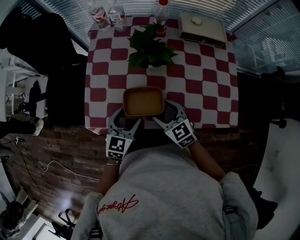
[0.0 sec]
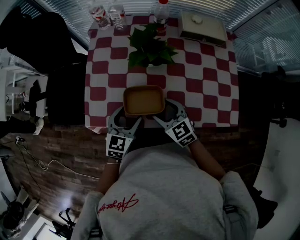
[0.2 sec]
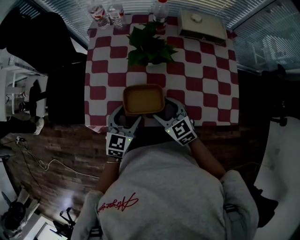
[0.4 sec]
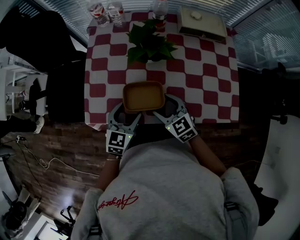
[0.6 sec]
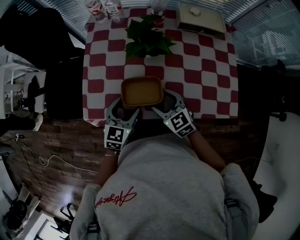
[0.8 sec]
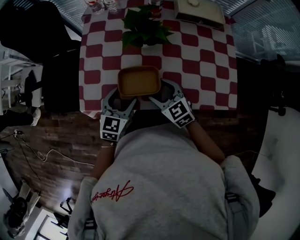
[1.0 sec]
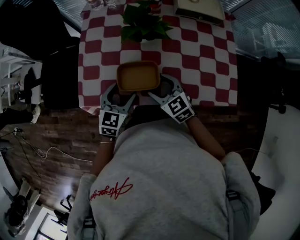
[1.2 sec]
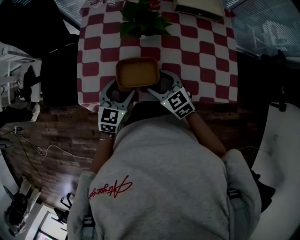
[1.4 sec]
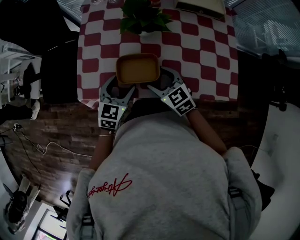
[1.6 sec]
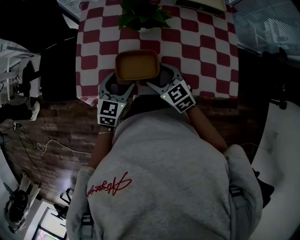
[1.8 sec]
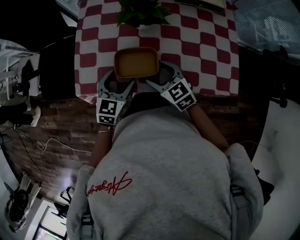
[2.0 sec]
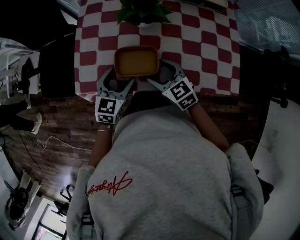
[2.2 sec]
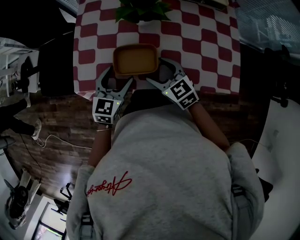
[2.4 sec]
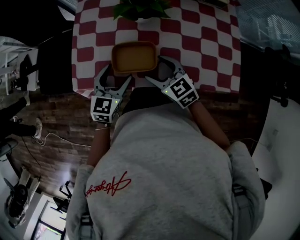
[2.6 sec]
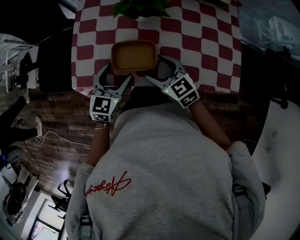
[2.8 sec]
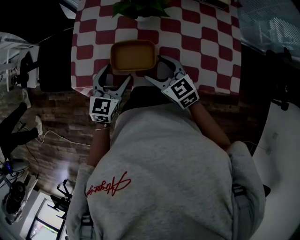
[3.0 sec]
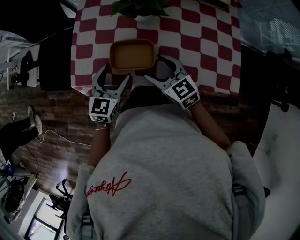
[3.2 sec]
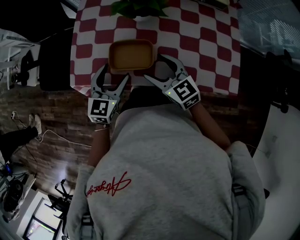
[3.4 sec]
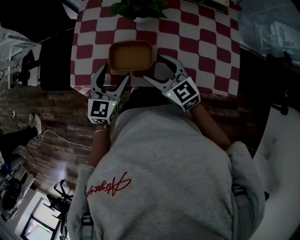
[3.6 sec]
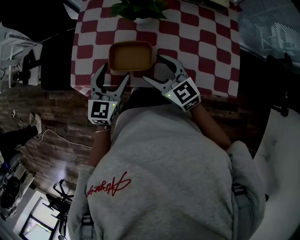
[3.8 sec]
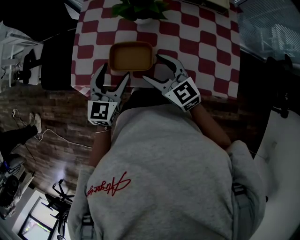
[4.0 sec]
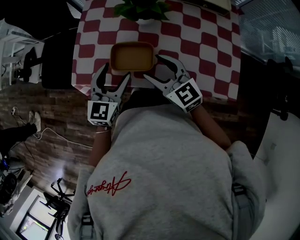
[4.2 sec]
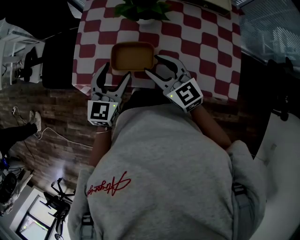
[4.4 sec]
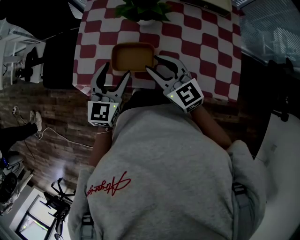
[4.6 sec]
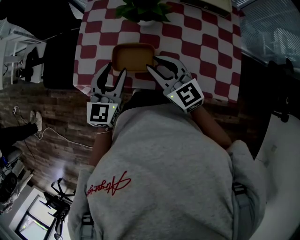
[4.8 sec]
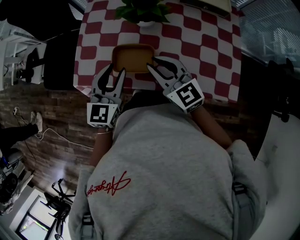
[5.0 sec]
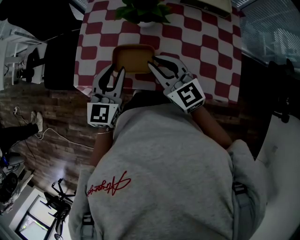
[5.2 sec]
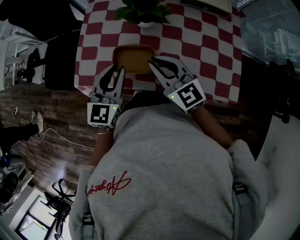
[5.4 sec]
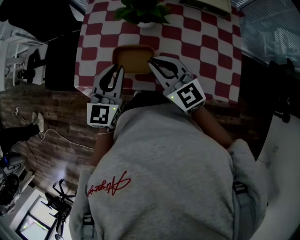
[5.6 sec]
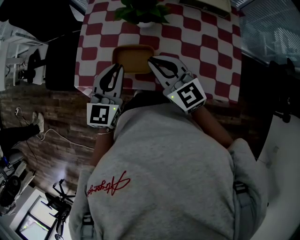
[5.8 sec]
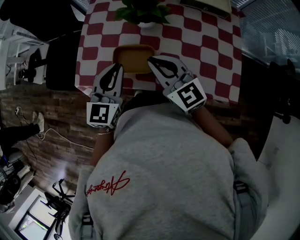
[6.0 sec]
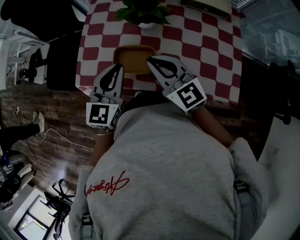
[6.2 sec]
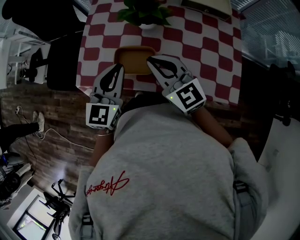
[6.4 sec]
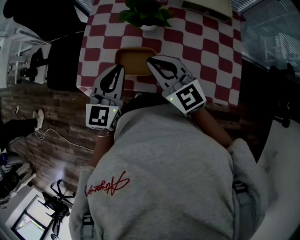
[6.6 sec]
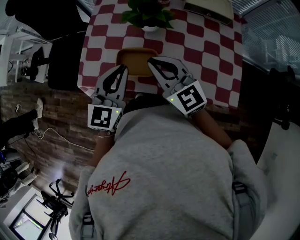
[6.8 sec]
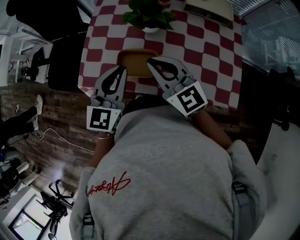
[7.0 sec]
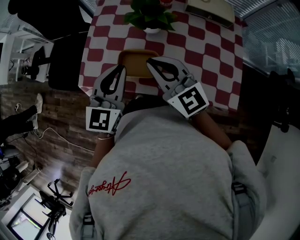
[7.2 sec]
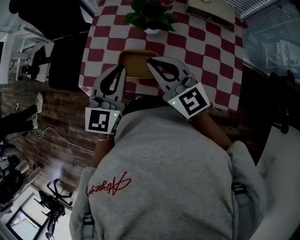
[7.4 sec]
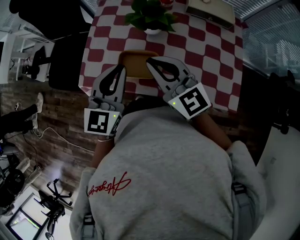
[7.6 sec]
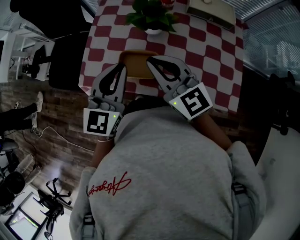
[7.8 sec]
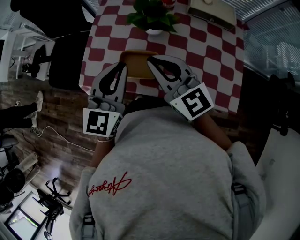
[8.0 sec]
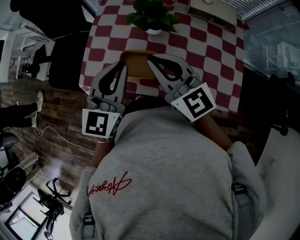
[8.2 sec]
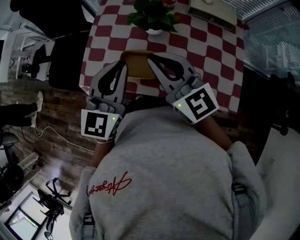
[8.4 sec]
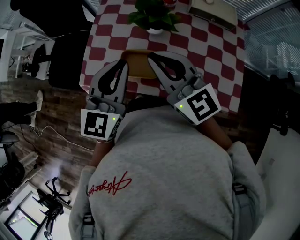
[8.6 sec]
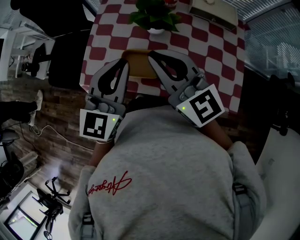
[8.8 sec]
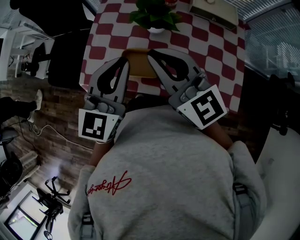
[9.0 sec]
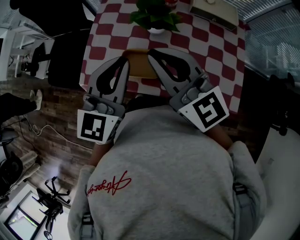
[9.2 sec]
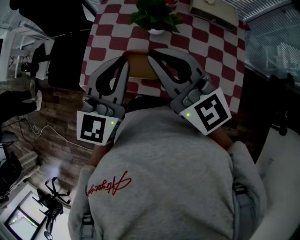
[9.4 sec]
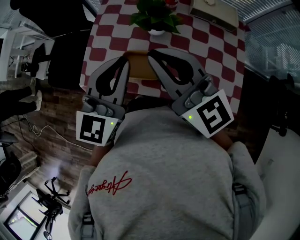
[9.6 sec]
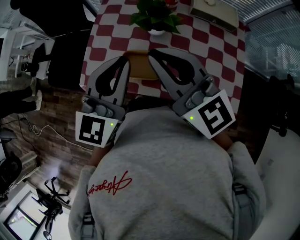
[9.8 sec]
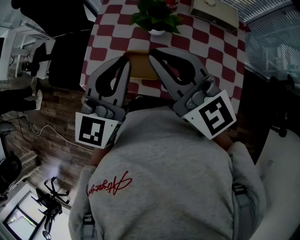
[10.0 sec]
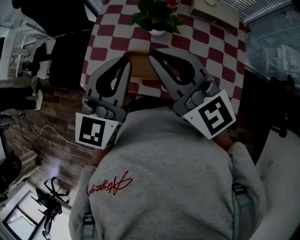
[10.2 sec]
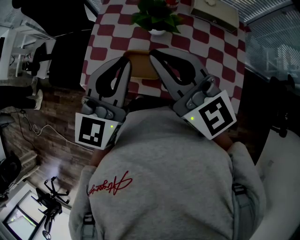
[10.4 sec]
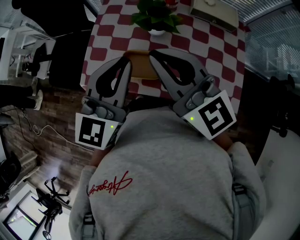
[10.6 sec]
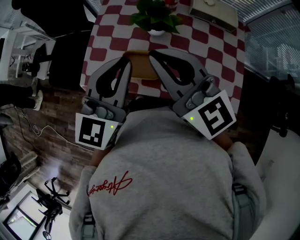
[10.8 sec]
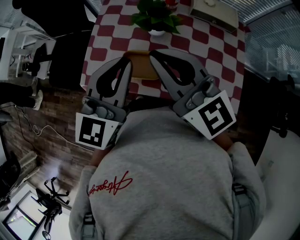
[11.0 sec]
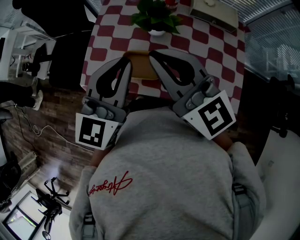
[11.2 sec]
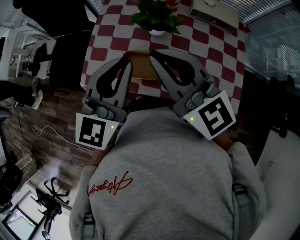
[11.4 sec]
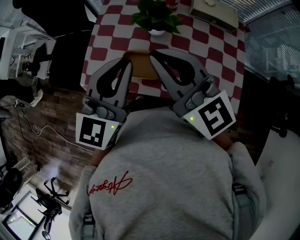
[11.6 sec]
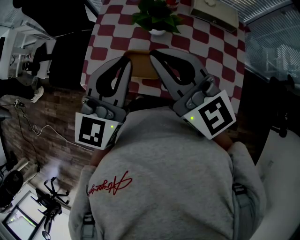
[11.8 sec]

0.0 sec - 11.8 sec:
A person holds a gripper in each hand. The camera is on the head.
0.0 sec - 1.4 sec: The two grippers keep their place.
1.4 sec - 3.0 sec: The grippers make only small movements.
3.0 sec - 4.4 sec: Both grippers travel together upward, approximately 5 cm. The right gripper closes up.
4.4 sec - 6.0 sec: The right gripper closes. The left gripper shifts by roughly 5 cm, and closes up.
6.0 sec - 7.4 sec: The left gripper is displaced upward by roughly 5 cm.
7.4 sec - 8.8 sec: The two grippers go about 5 cm upward.
8.8 sec - 10.4 sec: The grippers stay close to where they were, moving slightly.
10.4 sec - 11.8 sec: Both grippers stay about where they are.

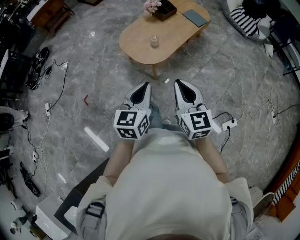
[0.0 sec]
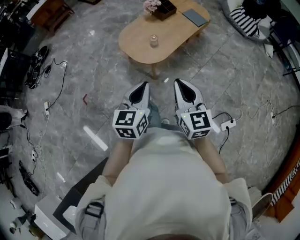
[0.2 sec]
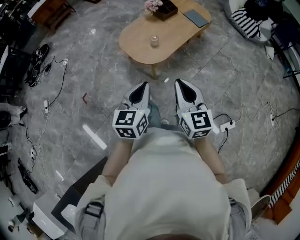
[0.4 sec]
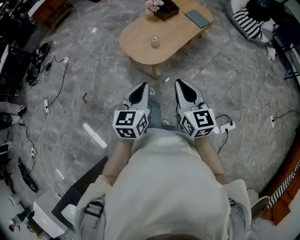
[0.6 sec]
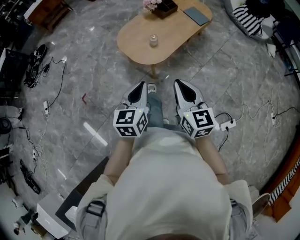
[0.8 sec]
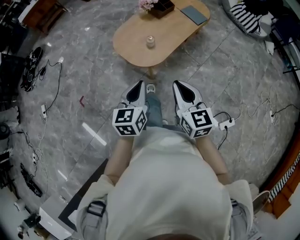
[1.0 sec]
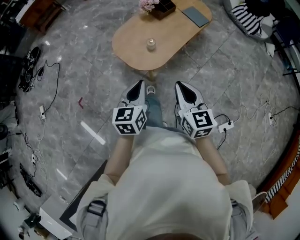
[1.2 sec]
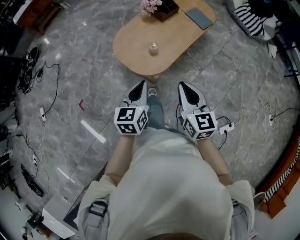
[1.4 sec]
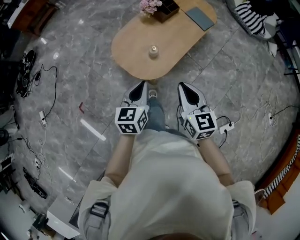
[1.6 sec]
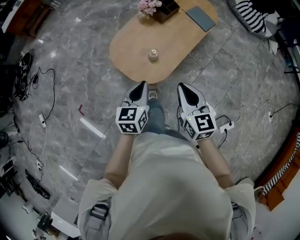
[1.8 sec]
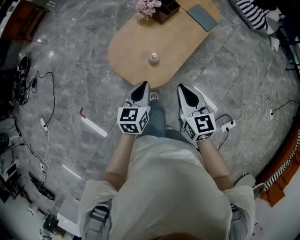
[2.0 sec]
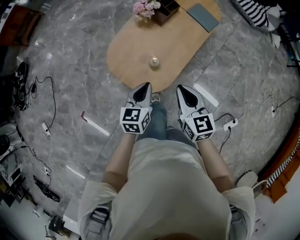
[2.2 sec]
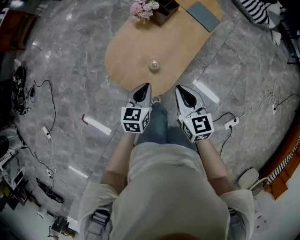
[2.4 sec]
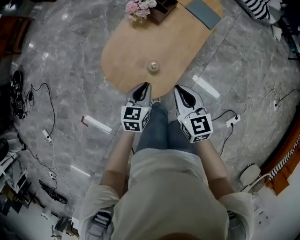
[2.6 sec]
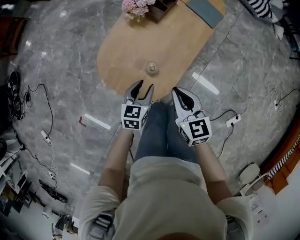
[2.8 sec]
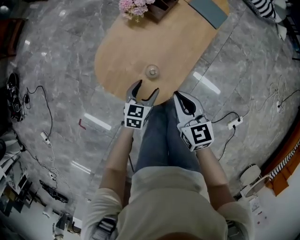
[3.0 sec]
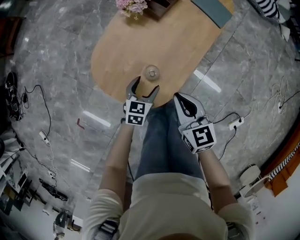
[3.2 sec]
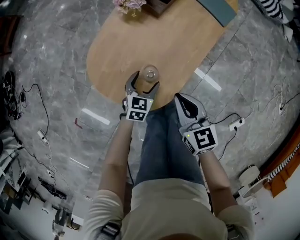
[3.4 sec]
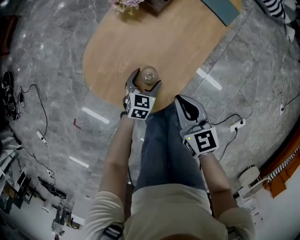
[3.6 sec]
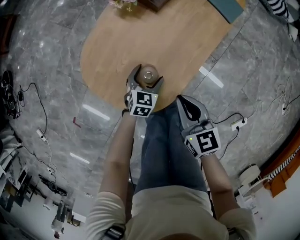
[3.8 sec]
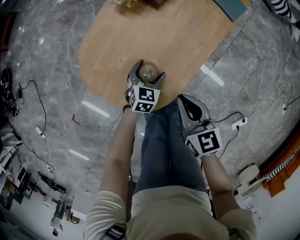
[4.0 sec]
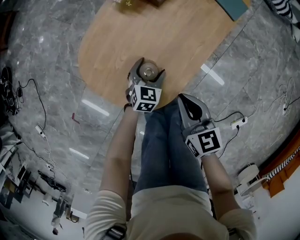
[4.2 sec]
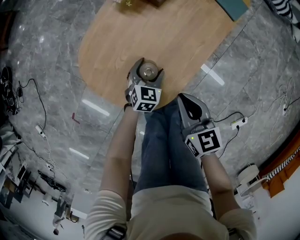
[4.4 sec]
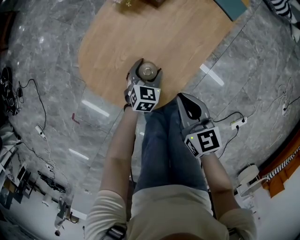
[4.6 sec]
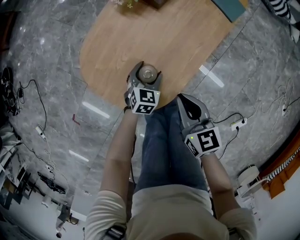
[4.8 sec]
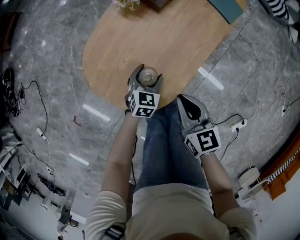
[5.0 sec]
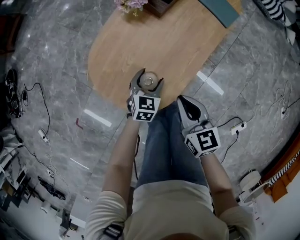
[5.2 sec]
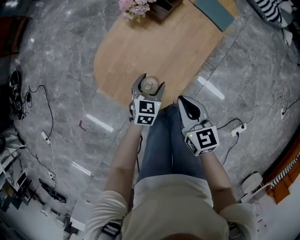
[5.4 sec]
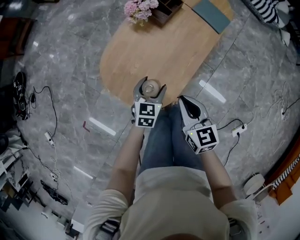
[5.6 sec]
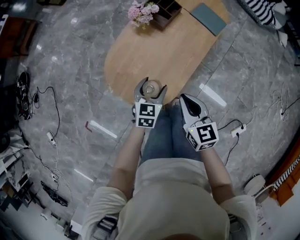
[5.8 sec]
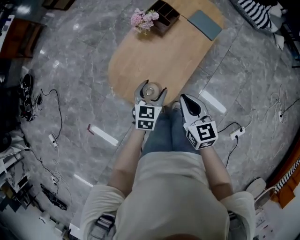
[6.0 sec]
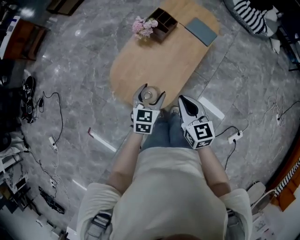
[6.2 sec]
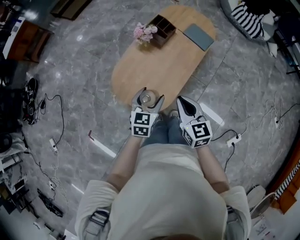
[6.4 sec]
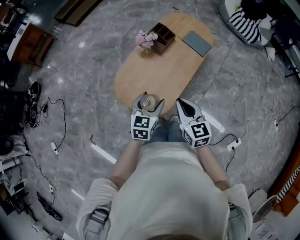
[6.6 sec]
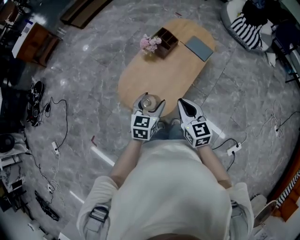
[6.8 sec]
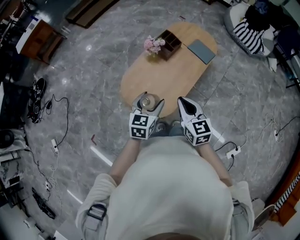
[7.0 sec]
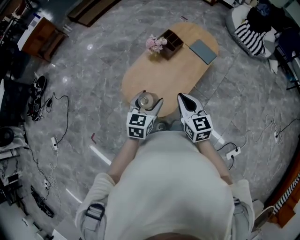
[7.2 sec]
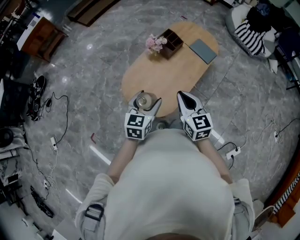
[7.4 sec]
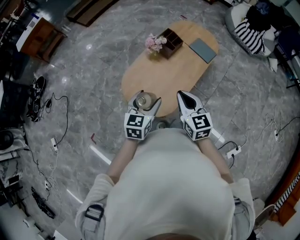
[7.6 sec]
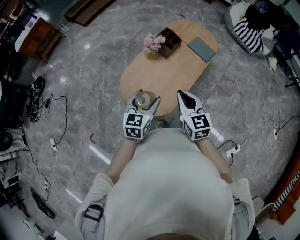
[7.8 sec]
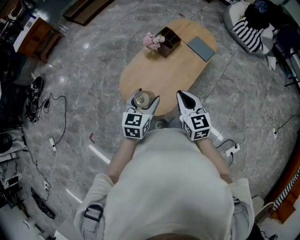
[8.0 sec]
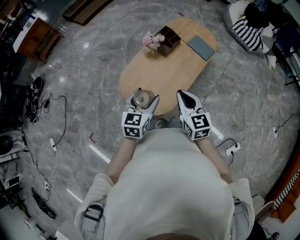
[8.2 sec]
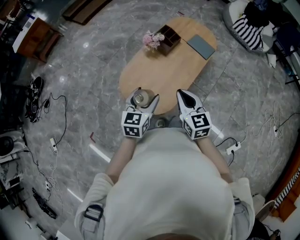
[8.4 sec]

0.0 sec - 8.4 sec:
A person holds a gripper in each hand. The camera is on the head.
0.0 sec - 1.4 sec: The two grippers go some 20 cm forward.
1.4 sec - 2.8 sec: Both grippers travel together forward and downward, approximately 30 cm. The left gripper rotates some 20 degrees, and opens its fingers.
2.8 sec - 4.2 sec: The two grippers go approximately 15 cm downward. The left gripper opens its fingers.
4.2 sec - 5.6 sec: The left gripper travels upward by about 15 cm. The right gripper heads upward, covering about 10 cm.
5.6 sec - 7.0 sec: Both grippers move upward, approximately 20 cm.
7.0 sec - 8.4 sec: The grippers stay close to where they were, moving slightly.

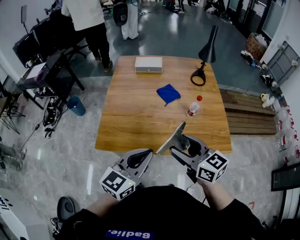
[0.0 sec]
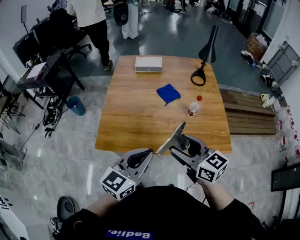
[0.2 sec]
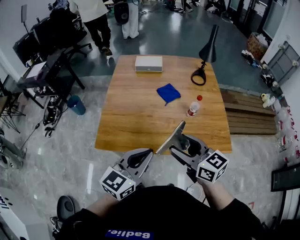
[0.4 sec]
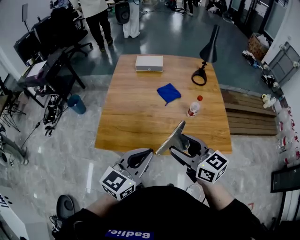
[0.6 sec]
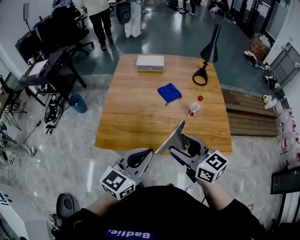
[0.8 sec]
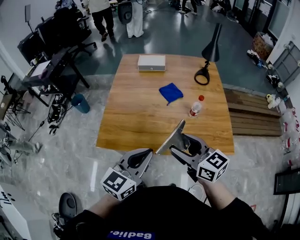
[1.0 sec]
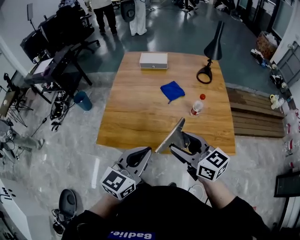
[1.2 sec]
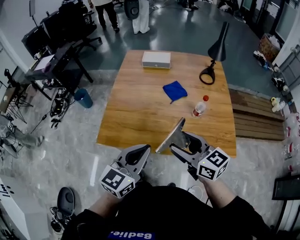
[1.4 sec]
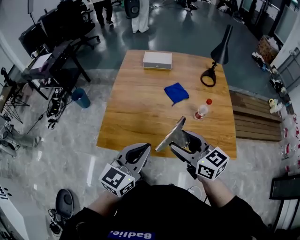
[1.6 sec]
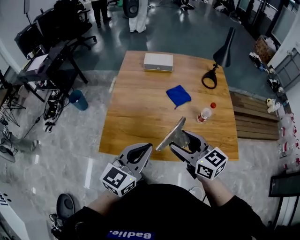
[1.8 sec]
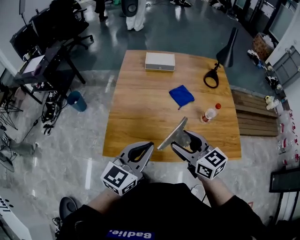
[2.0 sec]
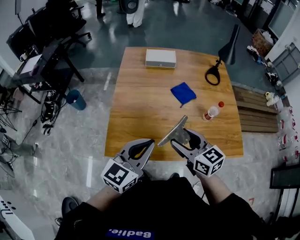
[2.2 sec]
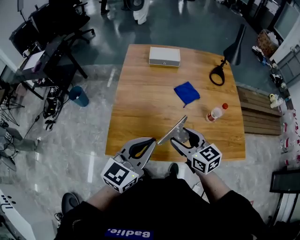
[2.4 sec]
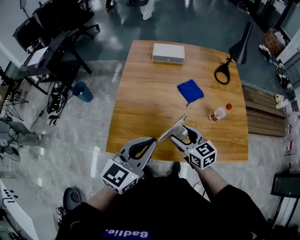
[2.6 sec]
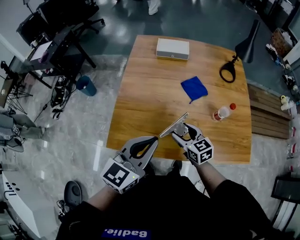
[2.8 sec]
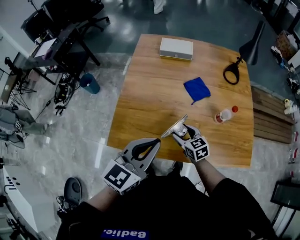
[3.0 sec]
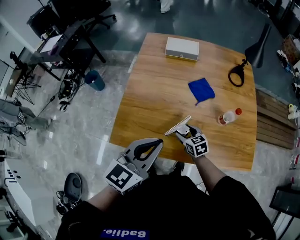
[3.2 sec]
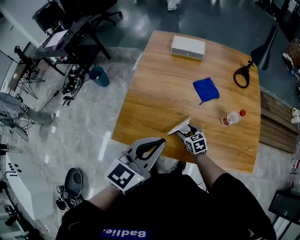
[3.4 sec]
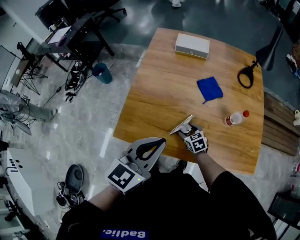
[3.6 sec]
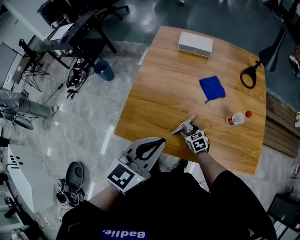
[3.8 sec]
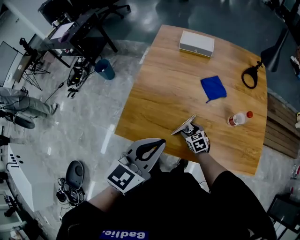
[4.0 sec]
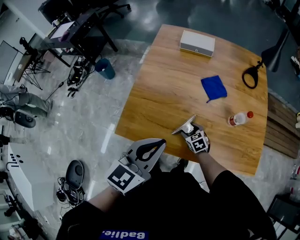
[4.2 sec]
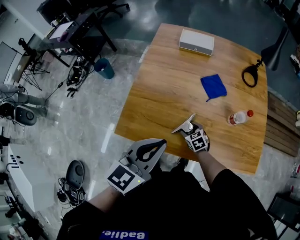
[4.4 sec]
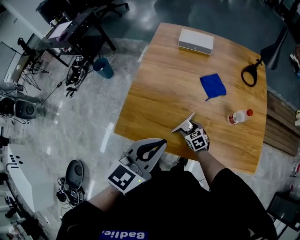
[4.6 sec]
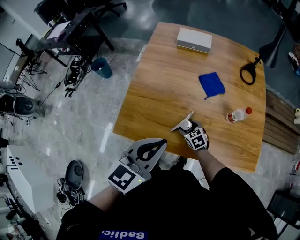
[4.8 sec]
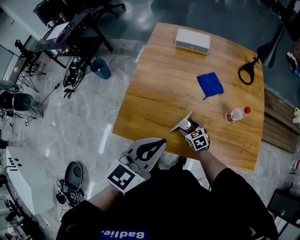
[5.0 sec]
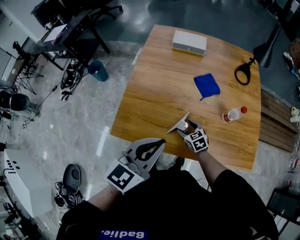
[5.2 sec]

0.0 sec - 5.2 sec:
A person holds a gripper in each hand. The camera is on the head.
0.0 sec - 1.8 sec: The grippers both shift forward by about 10 cm.
1.8 sec - 3.4 sec: The left gripper shifts approximately 5 cm forward. The right gripper heads downward and forward, covering roughly 35 cm, and tilts its fingers some 30 degrees downward.
3.4 sec - 5.2 sec: The grippers stay close to where they were, moving slightly.
